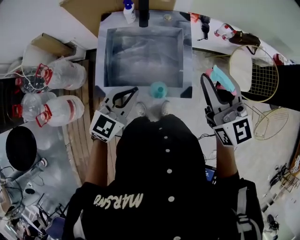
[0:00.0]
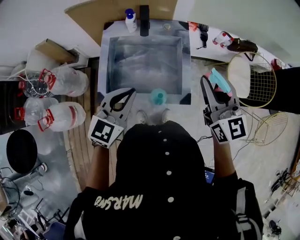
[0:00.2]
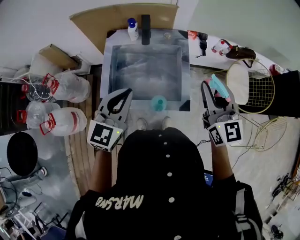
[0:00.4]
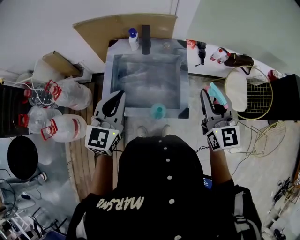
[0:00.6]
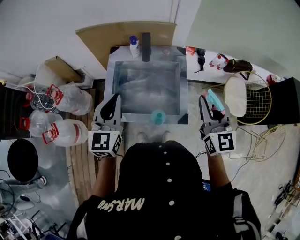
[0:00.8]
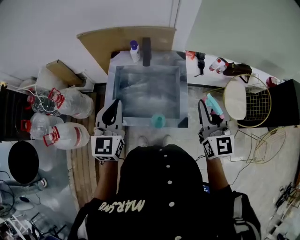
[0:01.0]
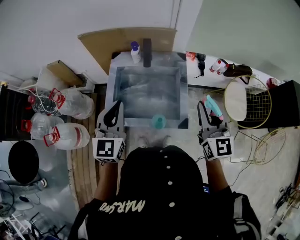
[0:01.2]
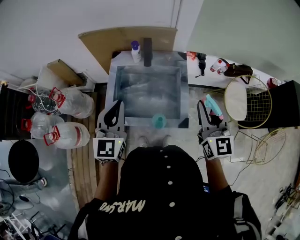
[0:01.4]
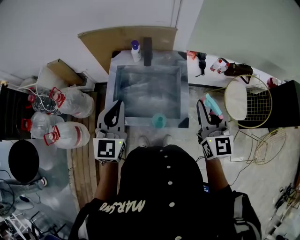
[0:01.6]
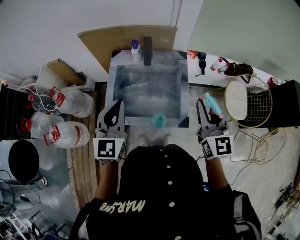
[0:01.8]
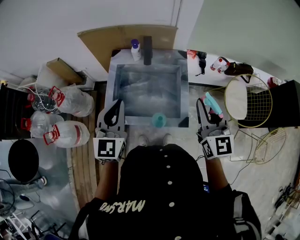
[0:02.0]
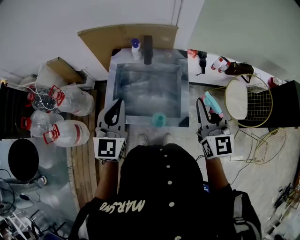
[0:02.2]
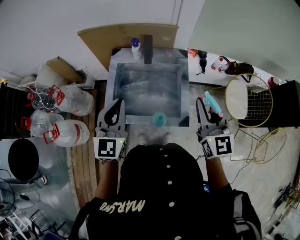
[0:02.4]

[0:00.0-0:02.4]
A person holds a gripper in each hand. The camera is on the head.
0:00.0 to 0:01.2: The left gripper moves upward and to the left, some 15 cm, and rotates some 30 degrees.
0:01.2 to 0:02.4: The grippers stay close to where they were, moving slightly.

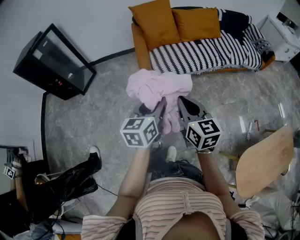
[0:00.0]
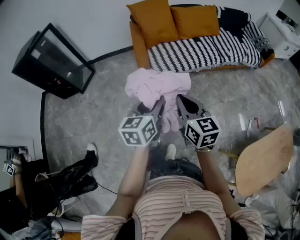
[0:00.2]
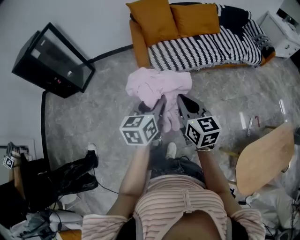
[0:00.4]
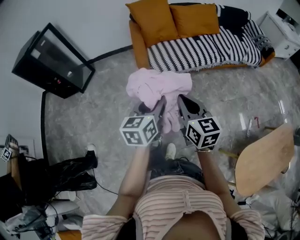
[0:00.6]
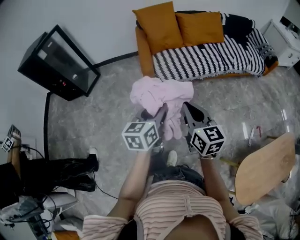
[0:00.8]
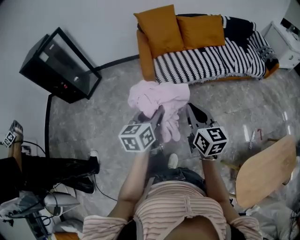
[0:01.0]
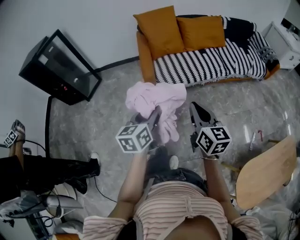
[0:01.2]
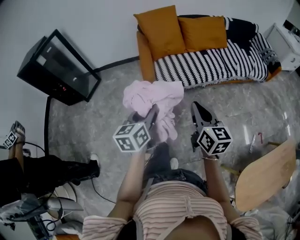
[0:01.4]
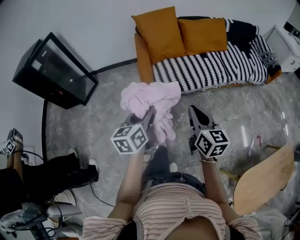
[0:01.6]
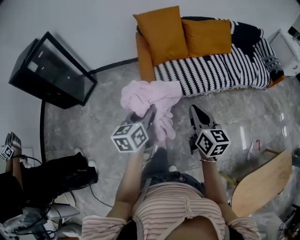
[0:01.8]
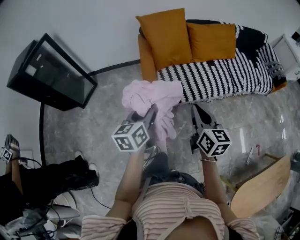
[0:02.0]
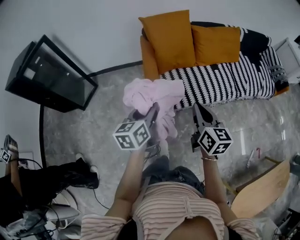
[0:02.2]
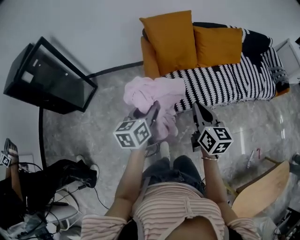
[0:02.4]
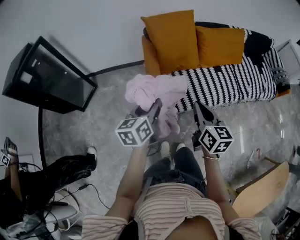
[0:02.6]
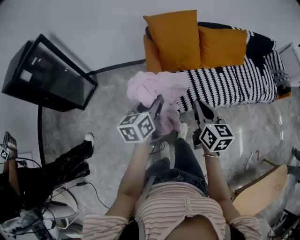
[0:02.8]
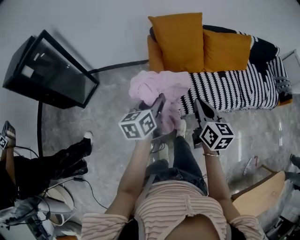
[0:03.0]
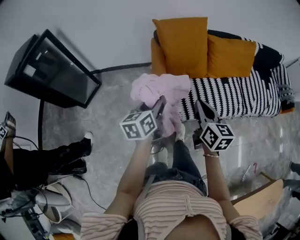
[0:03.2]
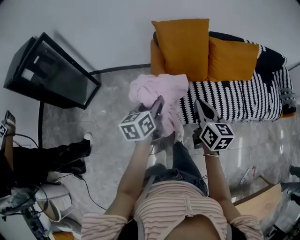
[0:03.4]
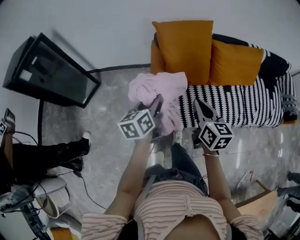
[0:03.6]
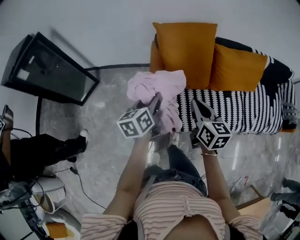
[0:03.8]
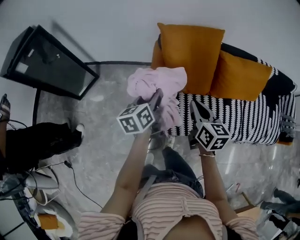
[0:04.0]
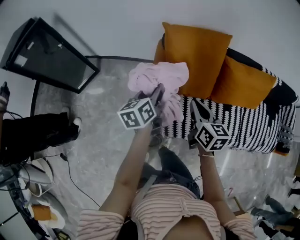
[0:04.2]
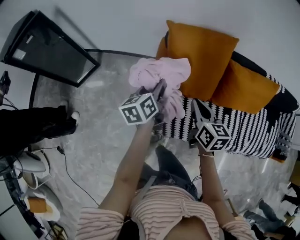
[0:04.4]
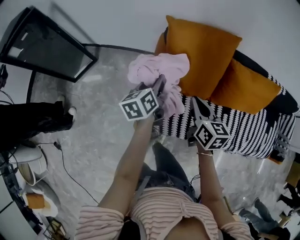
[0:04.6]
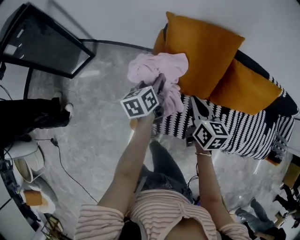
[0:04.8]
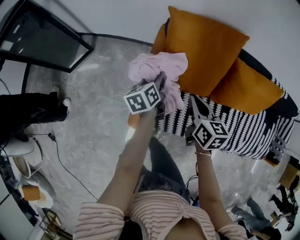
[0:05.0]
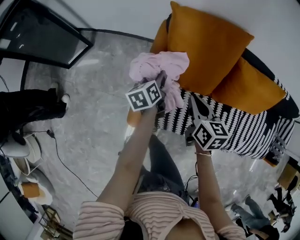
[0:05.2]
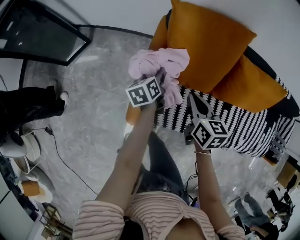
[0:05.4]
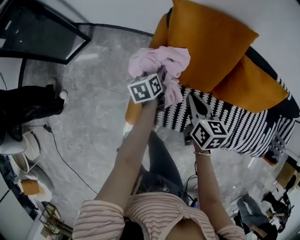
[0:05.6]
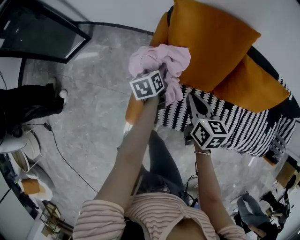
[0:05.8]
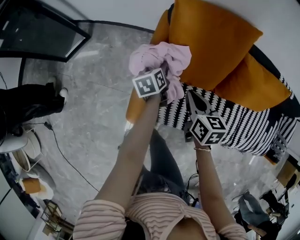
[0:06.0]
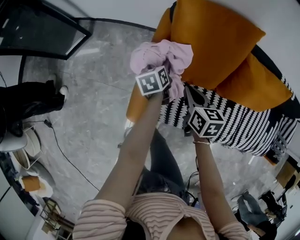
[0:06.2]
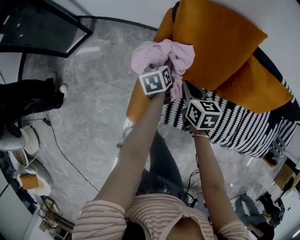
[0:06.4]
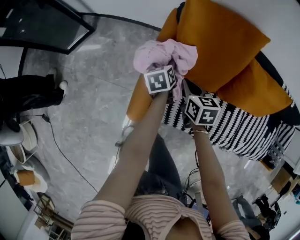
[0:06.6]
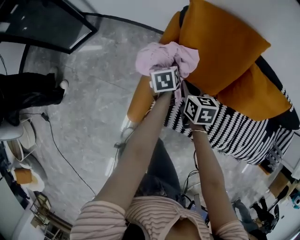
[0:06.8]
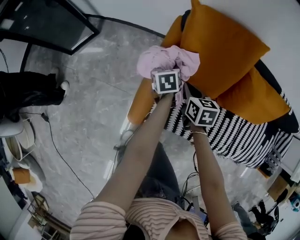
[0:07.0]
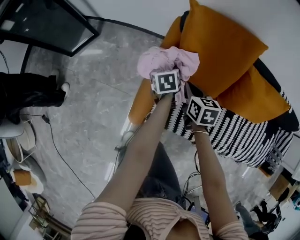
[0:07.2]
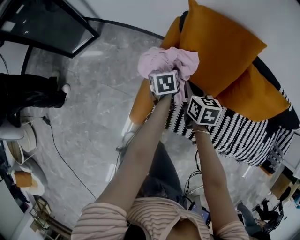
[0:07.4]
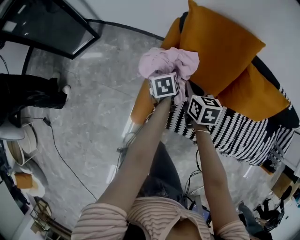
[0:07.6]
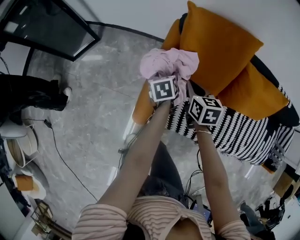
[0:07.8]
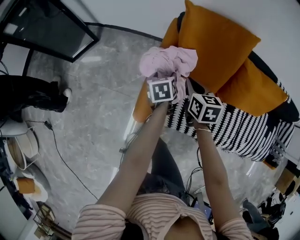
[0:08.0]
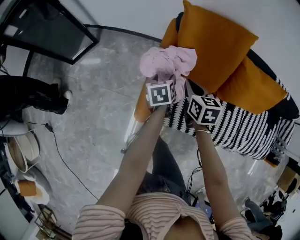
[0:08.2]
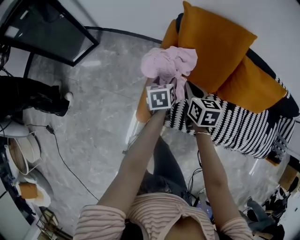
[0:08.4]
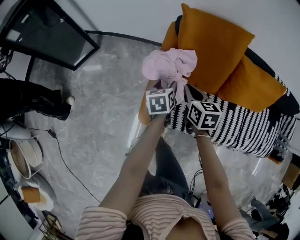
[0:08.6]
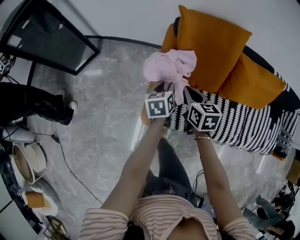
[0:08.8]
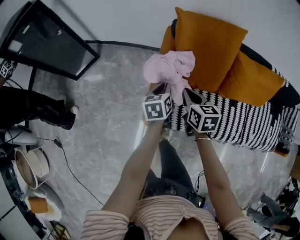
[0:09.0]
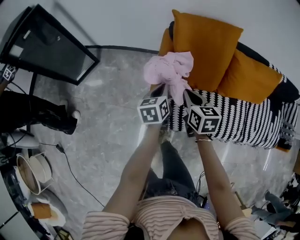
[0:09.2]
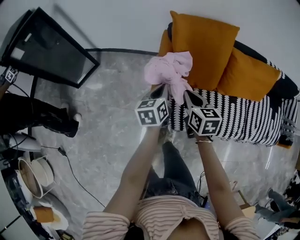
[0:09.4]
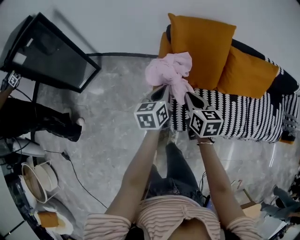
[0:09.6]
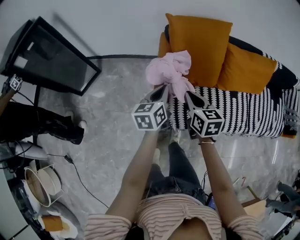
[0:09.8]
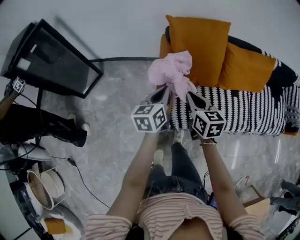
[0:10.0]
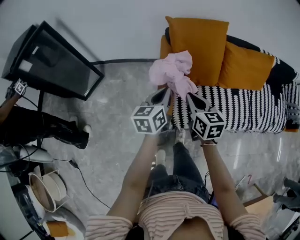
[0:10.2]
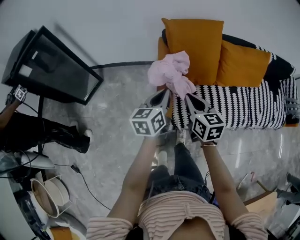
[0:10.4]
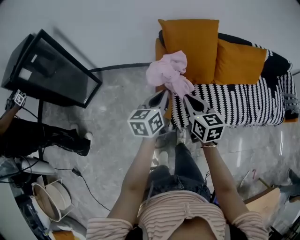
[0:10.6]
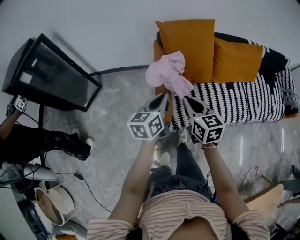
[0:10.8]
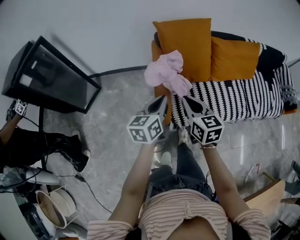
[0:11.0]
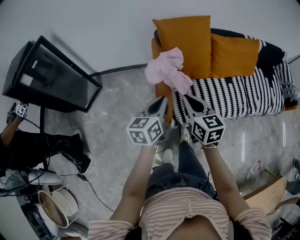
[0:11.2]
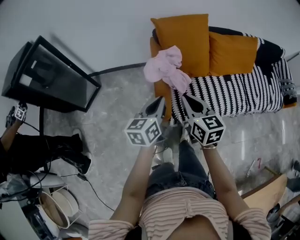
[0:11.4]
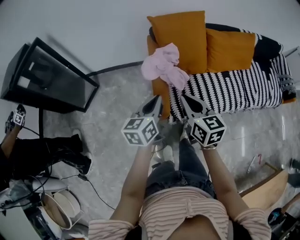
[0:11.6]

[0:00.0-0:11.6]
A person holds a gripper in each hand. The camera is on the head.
0:00.0 to 0:01.4: The left gripper shifts roughly 15 cm to the left and forward, while the right gripper goes approximately 10 cm forward.
0:01.4 to 0:02.8: Both grippers move forward, about 30 cm.
0:02.8 to 0:04.4: Both grippers move forward, approximately 30 cm. The left gripper turns by some 20 degrees, while the right gripper changes its angle by some 20 degrees.
0:04.4 to 0:05.8: The right gripper shifts about 10 cm downward. Meanwhile the left gripper shifts roughly 20 cm downward.
0:05.8 to 0:07.2: The right gripper goes roughly 10 cm downward and forward.
0:07.2 to 0:08.8: The left gripper shifts about 10 cm backward and upward, and closes, while the right gripper shifts roughly 10 cm upward and backward.
0:08.8 to 0:10.2: The left gripper goes approximately 15 cm upward and backward, rotates about 30 degrees, and closes its fingers, while the right gripper goes about 15 cm backward and upward.
0:10.2 to 0:11.6: The right gripper shifts some 10 cm backward and upward; the left gripper shifts about 10 cm backward.

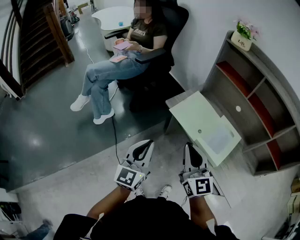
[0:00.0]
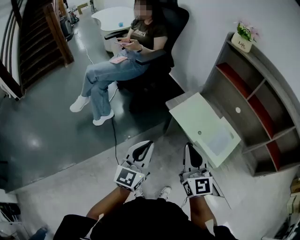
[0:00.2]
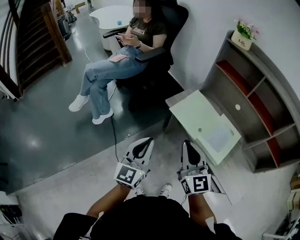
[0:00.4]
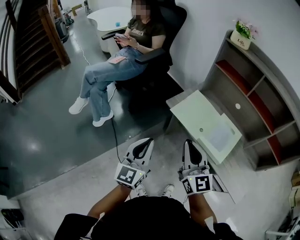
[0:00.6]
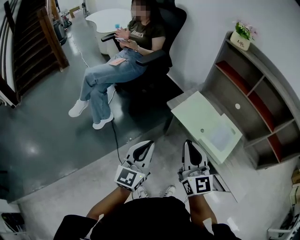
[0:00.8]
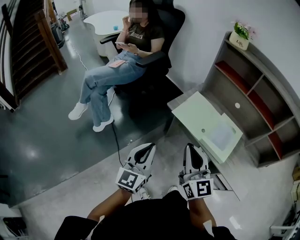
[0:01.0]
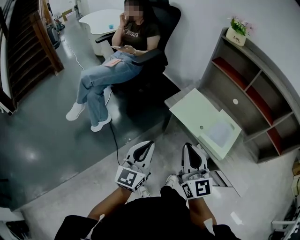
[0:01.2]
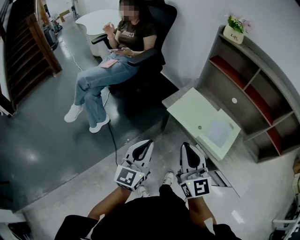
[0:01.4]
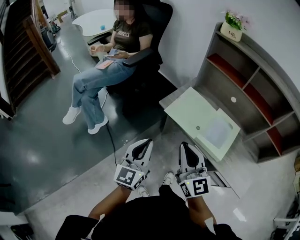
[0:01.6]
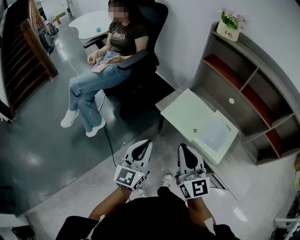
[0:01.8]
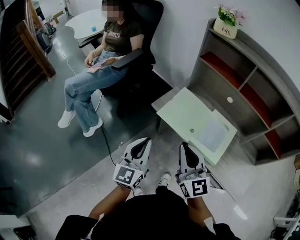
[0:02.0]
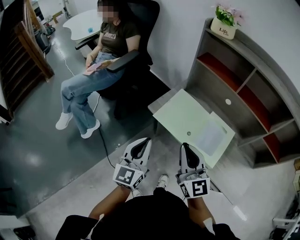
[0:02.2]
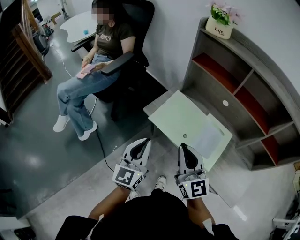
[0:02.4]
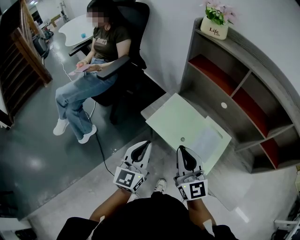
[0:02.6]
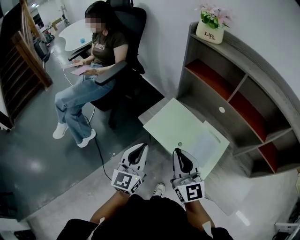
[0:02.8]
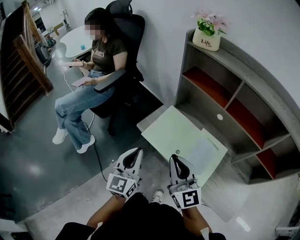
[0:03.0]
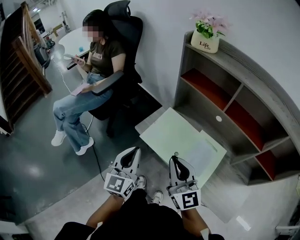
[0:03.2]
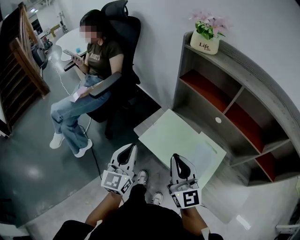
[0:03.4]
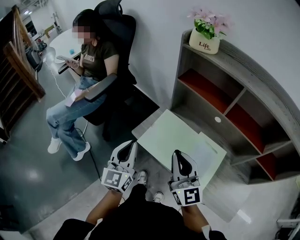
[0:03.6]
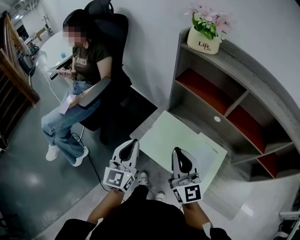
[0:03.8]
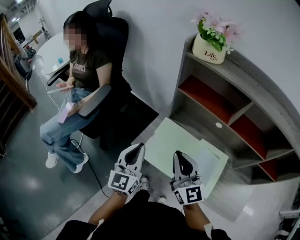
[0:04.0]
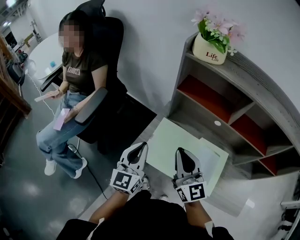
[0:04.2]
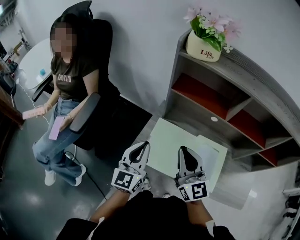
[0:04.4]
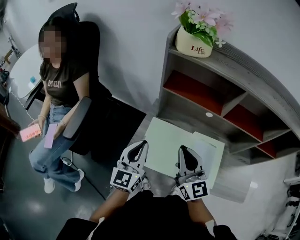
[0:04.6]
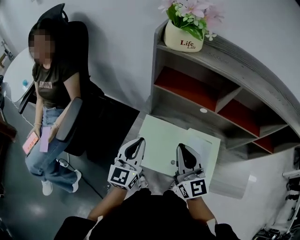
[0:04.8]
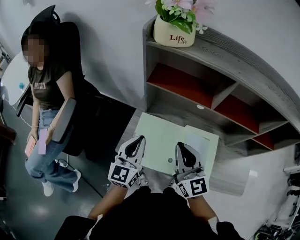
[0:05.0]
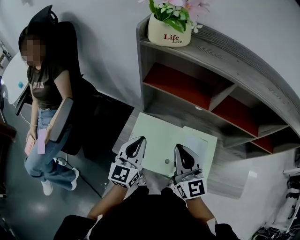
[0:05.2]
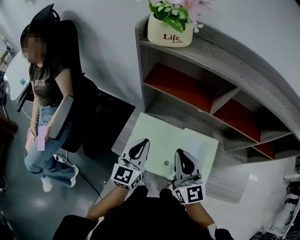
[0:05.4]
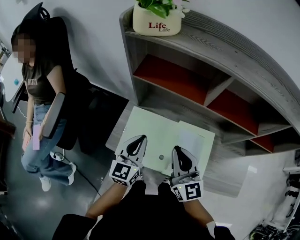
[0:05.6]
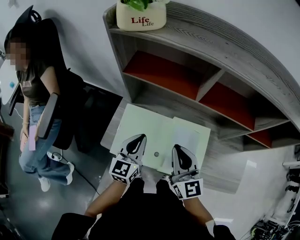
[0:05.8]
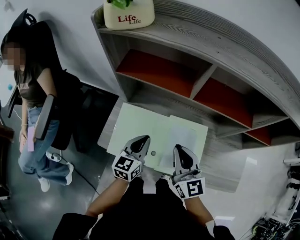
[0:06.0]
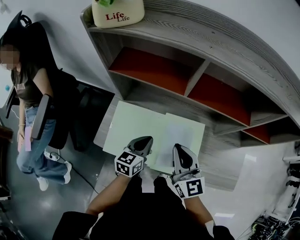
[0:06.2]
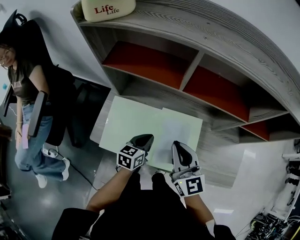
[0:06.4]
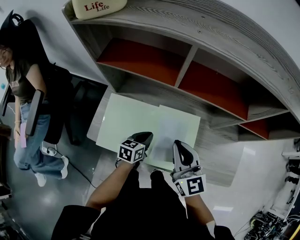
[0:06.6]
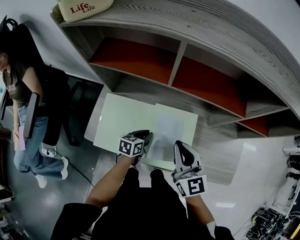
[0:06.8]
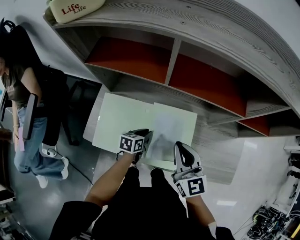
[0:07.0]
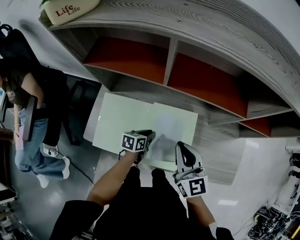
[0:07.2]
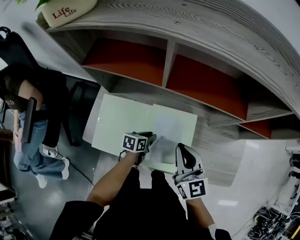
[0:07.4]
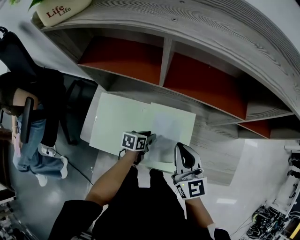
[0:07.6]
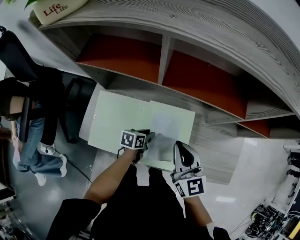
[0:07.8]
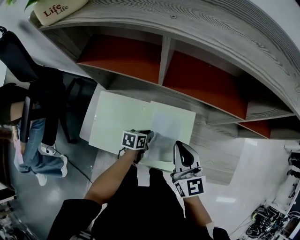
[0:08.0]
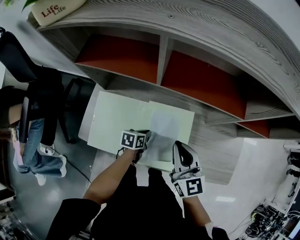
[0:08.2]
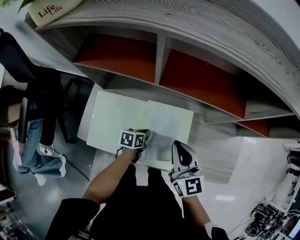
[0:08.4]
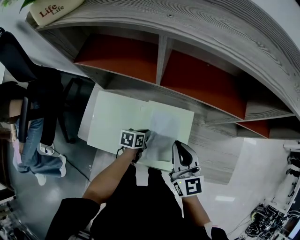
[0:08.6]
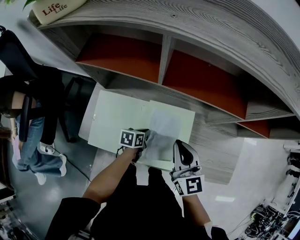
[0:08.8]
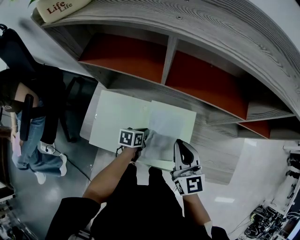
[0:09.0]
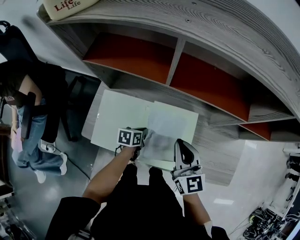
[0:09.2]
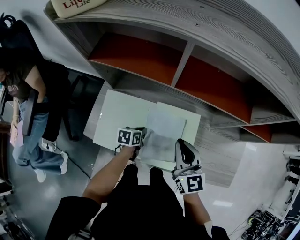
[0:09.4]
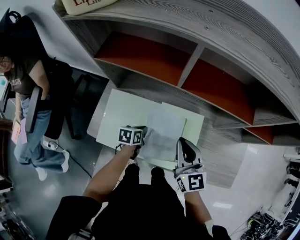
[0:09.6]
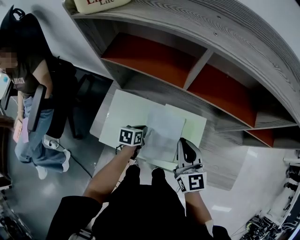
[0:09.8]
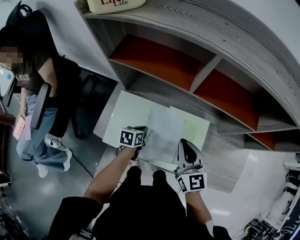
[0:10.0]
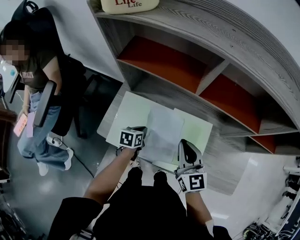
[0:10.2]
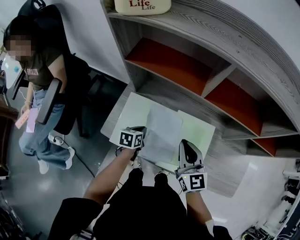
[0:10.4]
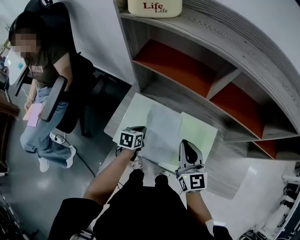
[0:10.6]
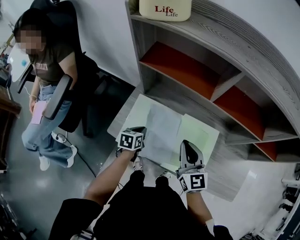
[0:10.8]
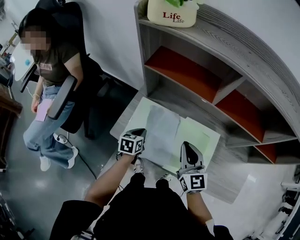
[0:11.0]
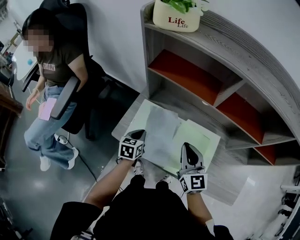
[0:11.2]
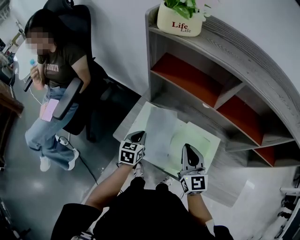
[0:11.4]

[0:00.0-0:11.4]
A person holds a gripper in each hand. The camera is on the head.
0:00.0 to 0:01.4: The right gripper ends up roughly 5 cm from where it was.
0:01.4 to 0:02.8: The left gripper travels forward and to the right by some 20 cm; the right gripper heads to the right and forward, covering approximately 20 cm.
0:02.8 to 0:04.2: The two grippers go approximately 20 cm forward.
0:04.2 to 0:05.6: The left gripper shifts roughly 15 cm to the right, downward and forward; the right gripper heads to the right and downward, covering about 15 cm.
0:05.6 to 0:07.2: The left gripper shifts approximately 30 cm downward and to the right, and tilts its fingers some 30 degrees downward. The right gripper is displaced to the right and downward by some 15 cm.
0:07.2 to 0:08.6: The grippers move only a little.
0:08.6 to 0:10.0: The left gripper heads to the left, covering about 10 cm. Meanwhile the right gripper is displaced to the left by approximately 5 cm.
0:10.0 to 0:11.4: The left gripper goes roughly 15 cm to the left and upward, and rotates some 30 degrees; the right gripper moves to the left, some 10 cm.
